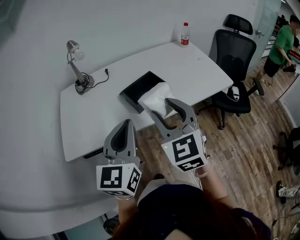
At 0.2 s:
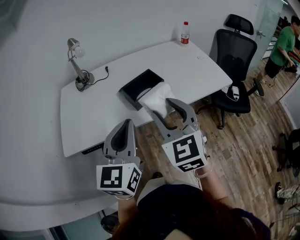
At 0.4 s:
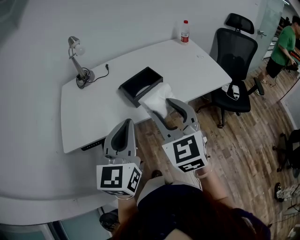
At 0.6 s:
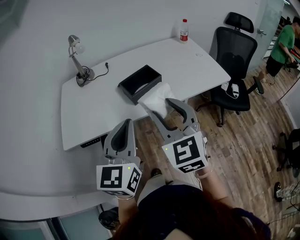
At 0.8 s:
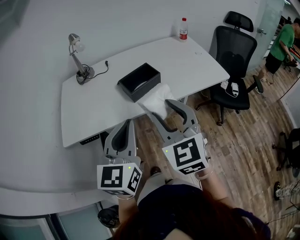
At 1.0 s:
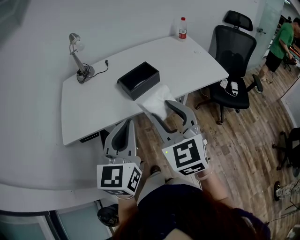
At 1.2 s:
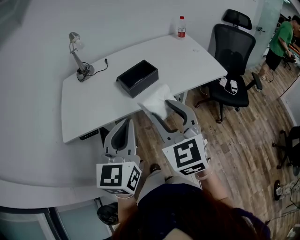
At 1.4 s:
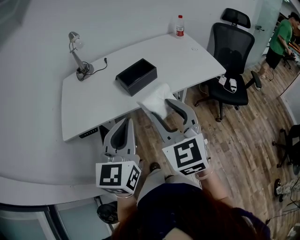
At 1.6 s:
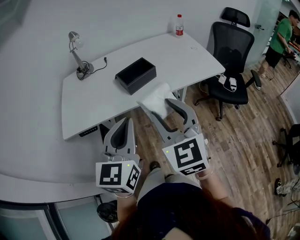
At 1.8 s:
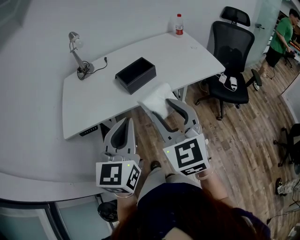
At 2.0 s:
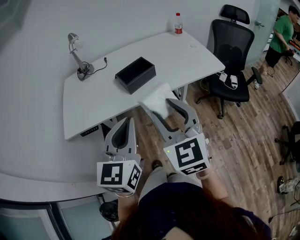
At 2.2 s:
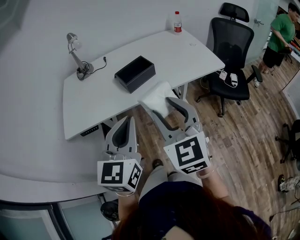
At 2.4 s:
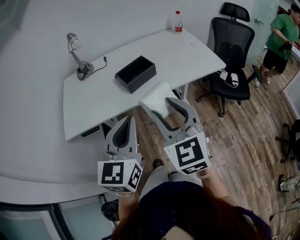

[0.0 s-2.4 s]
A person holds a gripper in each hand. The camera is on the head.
0.0 to 1.2 s: Both grippers move backward, approximately 10 cm.
1.2 to 2.4 s: The grippers stay close to where they were, moving slightly.

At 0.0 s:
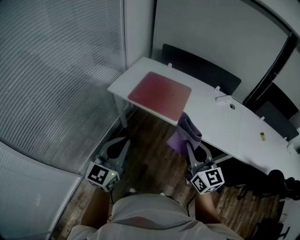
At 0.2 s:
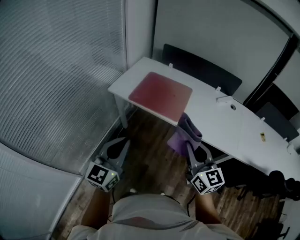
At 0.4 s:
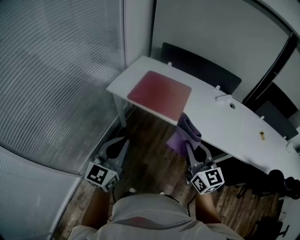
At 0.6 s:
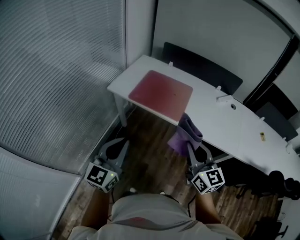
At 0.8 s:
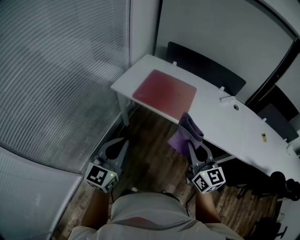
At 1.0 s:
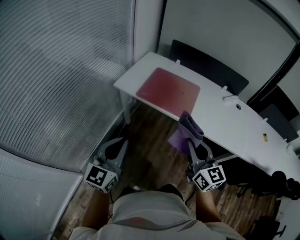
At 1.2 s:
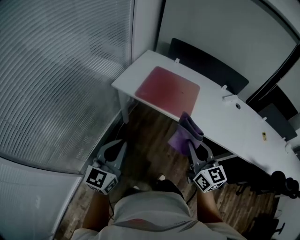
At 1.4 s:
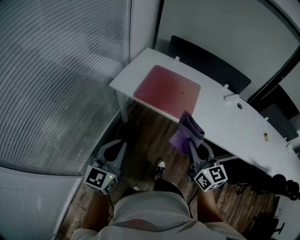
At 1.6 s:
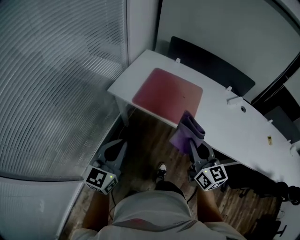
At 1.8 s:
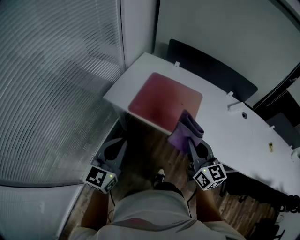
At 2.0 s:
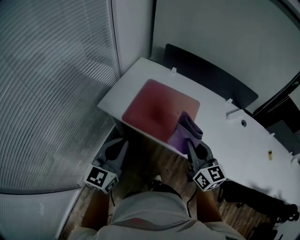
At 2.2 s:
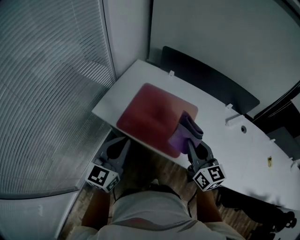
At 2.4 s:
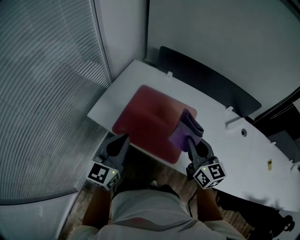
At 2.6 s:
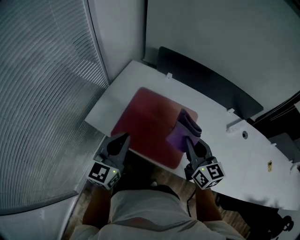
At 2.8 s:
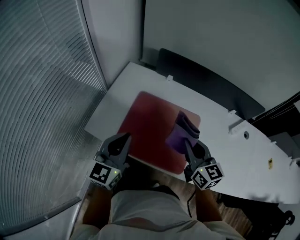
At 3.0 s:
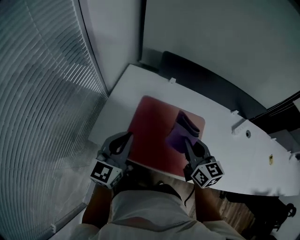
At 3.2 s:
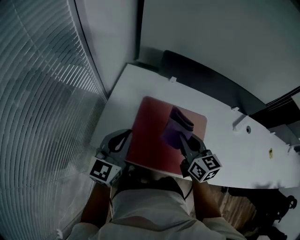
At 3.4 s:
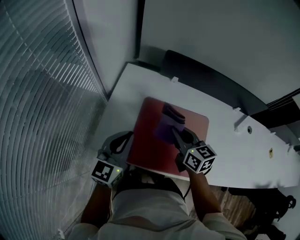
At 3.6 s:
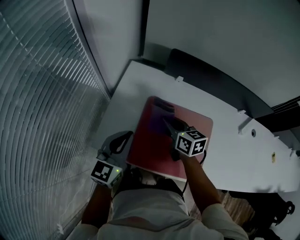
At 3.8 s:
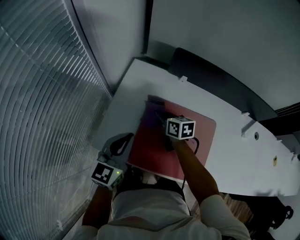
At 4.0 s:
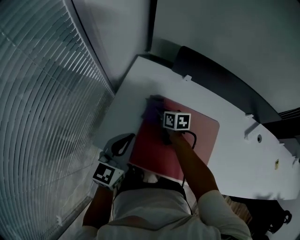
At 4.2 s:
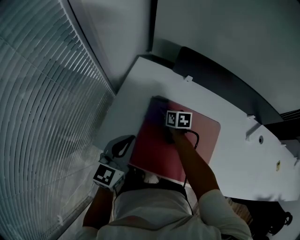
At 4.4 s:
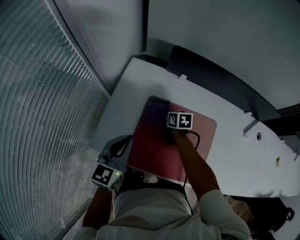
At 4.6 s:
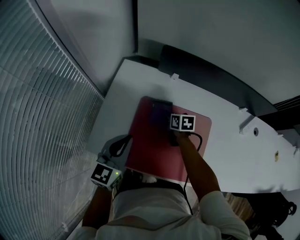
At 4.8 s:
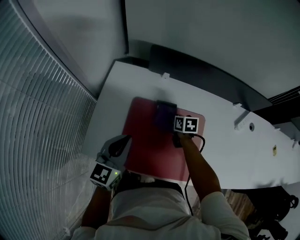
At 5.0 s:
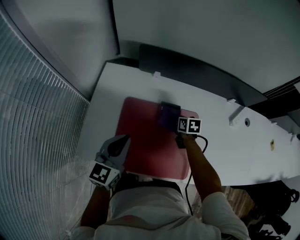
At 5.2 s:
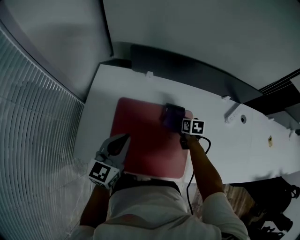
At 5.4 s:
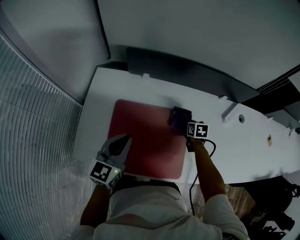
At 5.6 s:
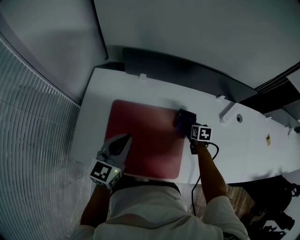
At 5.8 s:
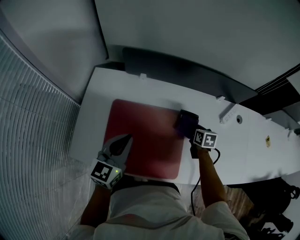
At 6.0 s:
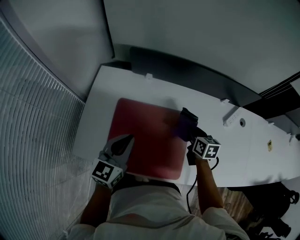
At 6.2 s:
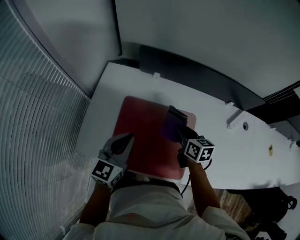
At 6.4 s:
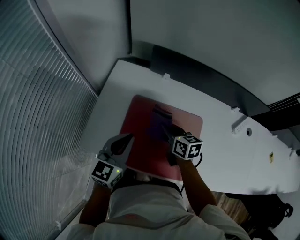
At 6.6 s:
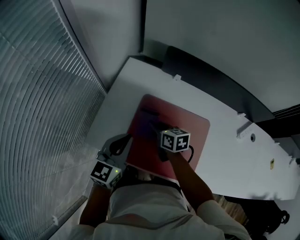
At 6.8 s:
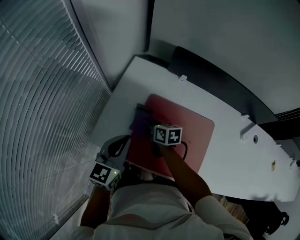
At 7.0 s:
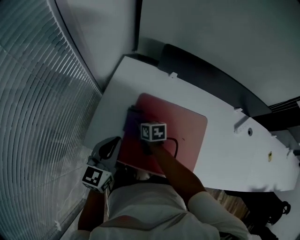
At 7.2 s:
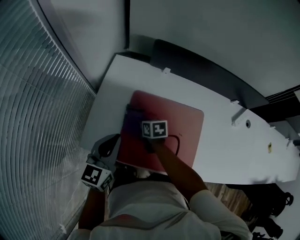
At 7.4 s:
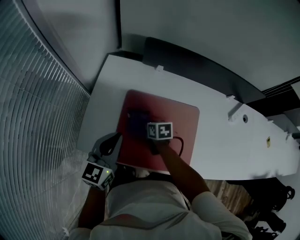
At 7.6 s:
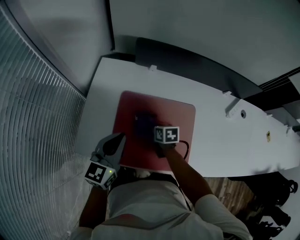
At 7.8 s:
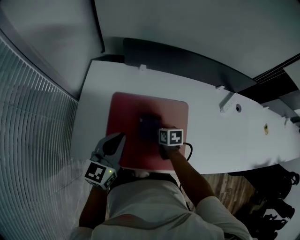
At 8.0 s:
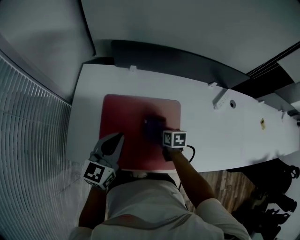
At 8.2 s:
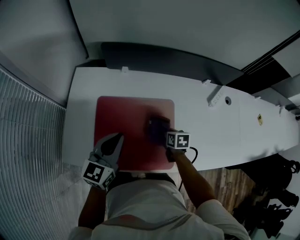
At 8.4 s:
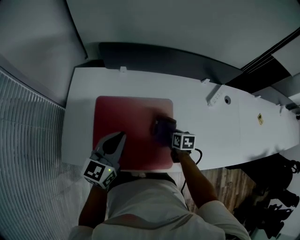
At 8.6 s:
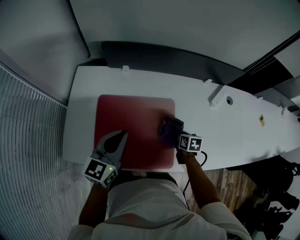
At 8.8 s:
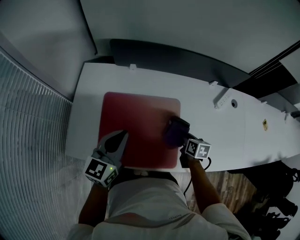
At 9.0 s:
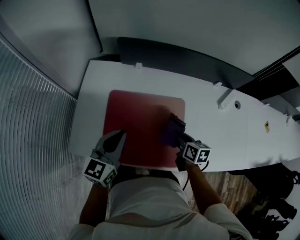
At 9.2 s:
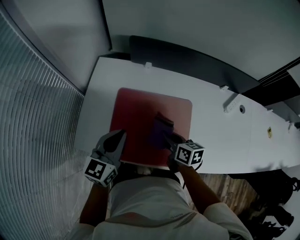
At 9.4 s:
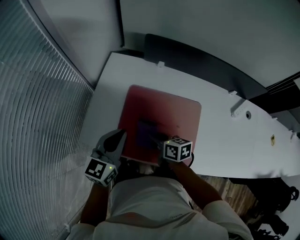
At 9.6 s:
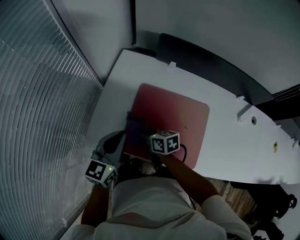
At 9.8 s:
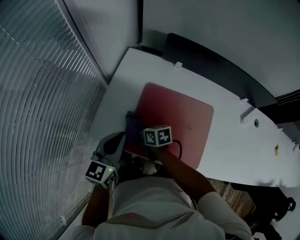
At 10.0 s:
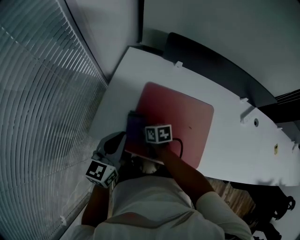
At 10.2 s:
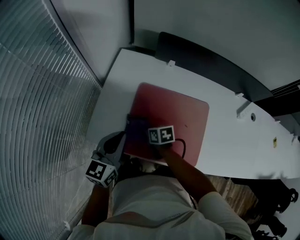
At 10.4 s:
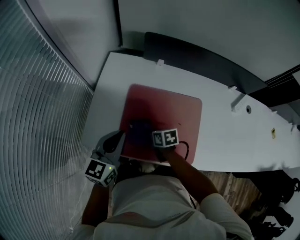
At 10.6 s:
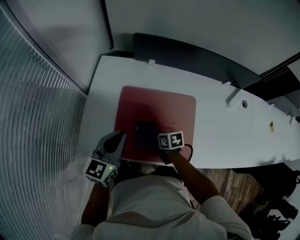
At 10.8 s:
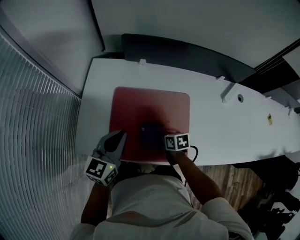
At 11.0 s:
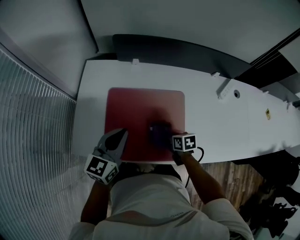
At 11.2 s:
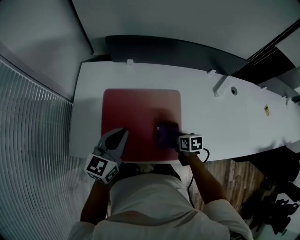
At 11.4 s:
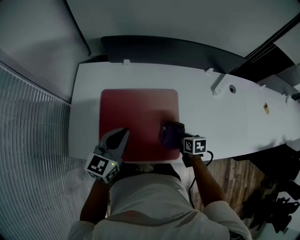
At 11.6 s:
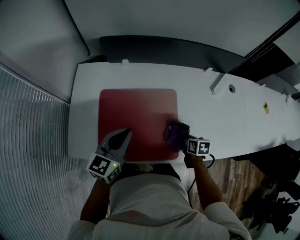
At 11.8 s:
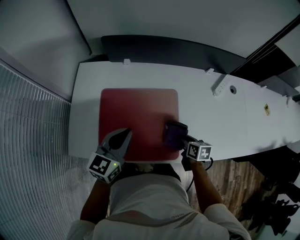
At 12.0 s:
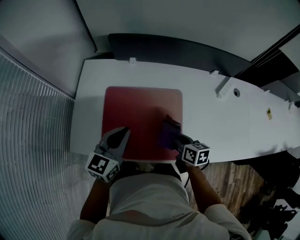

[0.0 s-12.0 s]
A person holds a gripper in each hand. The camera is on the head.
0.0 to 1.6 s: The left gripper shifts roughly 20 cm forward, to the left and downward. Meanwhile the right gripper heads forward and to the left, covering about 15 cm.
1.6 to 3.0 s: Both grippers are carried forward, some 40 cm.
3.0 to 4.4 s: The left gripper heads forward and downward, covering some 10 cm; the right gripper travels forward, downward and to the left by about 35 cm, and tilts its fingers some 30 degrees downward.
4.4 to 6.0 s: The left gripper shifts roughly 15 cm to the right. Meanwhile the right gripper is displaced to the right by approximately 30 cm, and changes its angle by roughly 20 degrees.
6.0 to 7.6 s: The right gripper shifts about 25 cm to the left and downward; the left gripper shifts approximately 10 cm to the left.
7.6 to 9.0 s: The left gripper heads to the right, covering some 5 cm. The right gripper travels to the right and upward by some 20 cm.
9.0 to 10.4 s: The right gripper changes place by approximately 25 cm, and turns by approximately 30 degrees.
10.4 to 12.0 s: The left gripper goes roughly 15 cm to the right, while the right gripper heads to the right, covering some 25 cm, and changes its angle by roughly 20 degrees.

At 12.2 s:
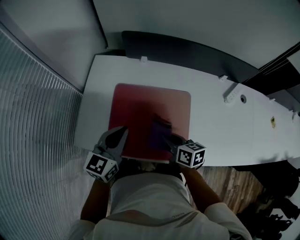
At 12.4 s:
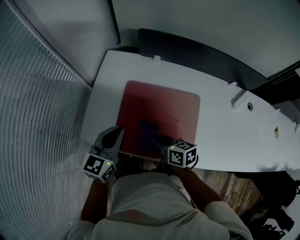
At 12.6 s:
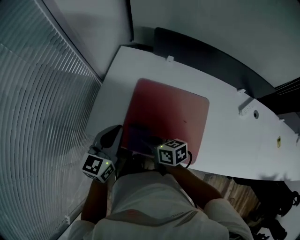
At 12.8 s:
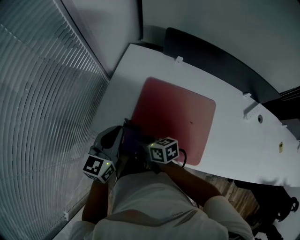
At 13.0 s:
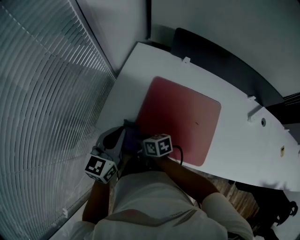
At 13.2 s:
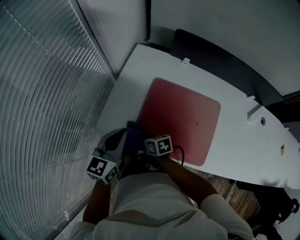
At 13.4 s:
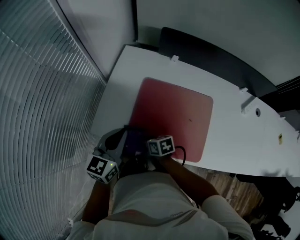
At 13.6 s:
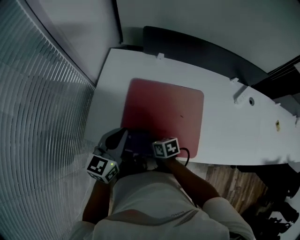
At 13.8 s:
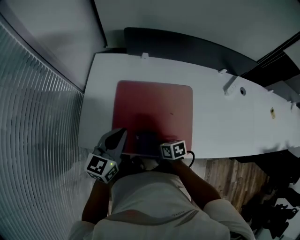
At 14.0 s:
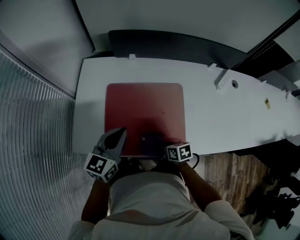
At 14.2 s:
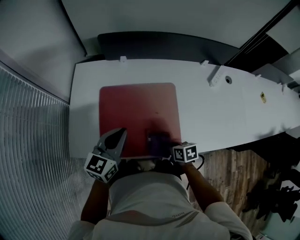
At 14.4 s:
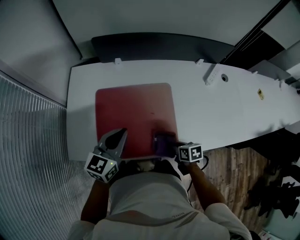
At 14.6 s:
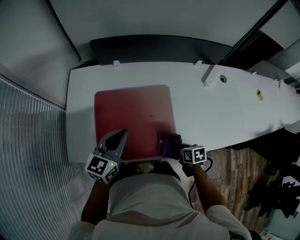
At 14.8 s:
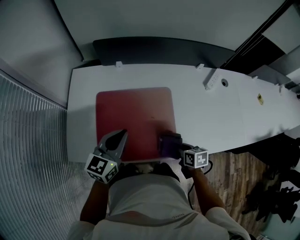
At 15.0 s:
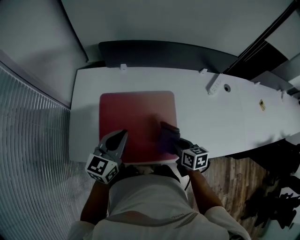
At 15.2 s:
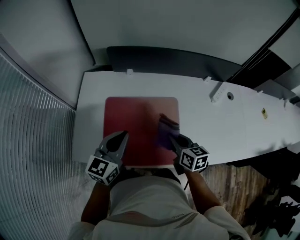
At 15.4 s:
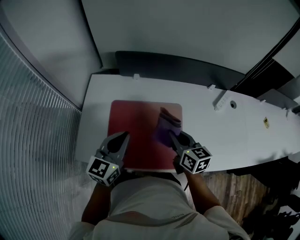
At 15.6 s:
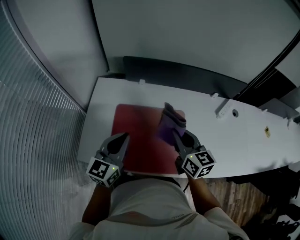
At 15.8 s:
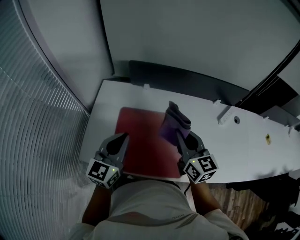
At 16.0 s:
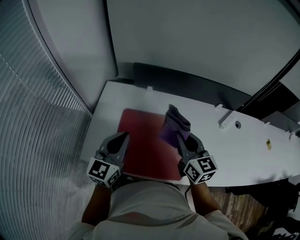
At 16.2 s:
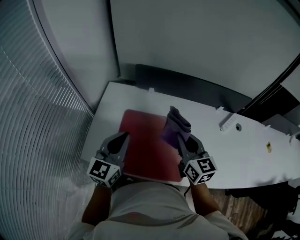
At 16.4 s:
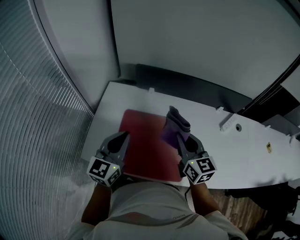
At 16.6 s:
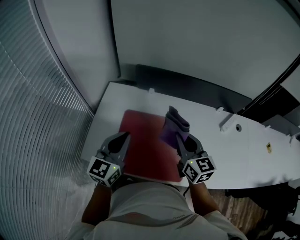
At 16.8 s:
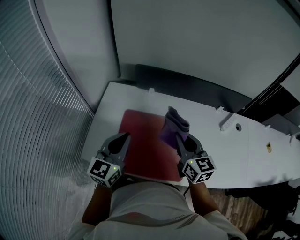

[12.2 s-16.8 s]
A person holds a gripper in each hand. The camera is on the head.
12.2 to 13.8 s: The right gripper goes roughly 10 cm downward, and turns by about 20 degrees.
13.8 to 15.2 s: The left gripper travels to the right by roughly 10 cm. Meanwhile the right gripper shifts approximately 20 cm to the right, upward and forward, and changes its angle by approximately 30 degrees.
15.2 to 16.8 s: The right gripper is displaced upward by approximately 15 cm, and turns by approximately 30 degrees, while the left gripper goes approximately 10 cm upward.

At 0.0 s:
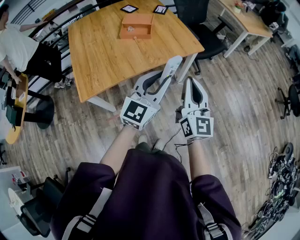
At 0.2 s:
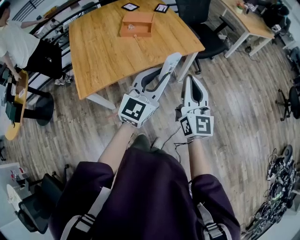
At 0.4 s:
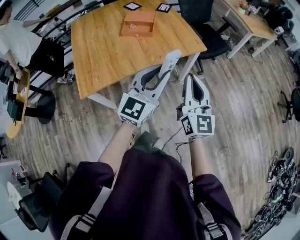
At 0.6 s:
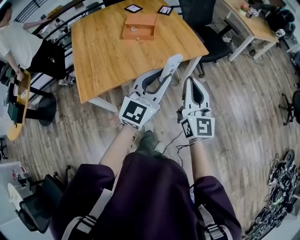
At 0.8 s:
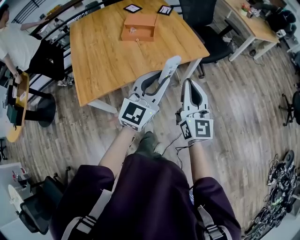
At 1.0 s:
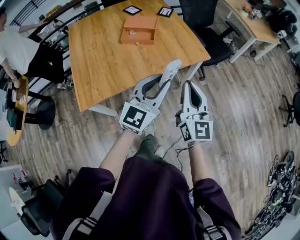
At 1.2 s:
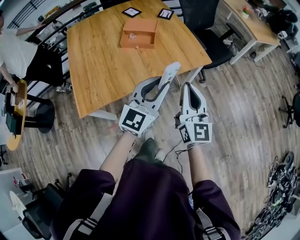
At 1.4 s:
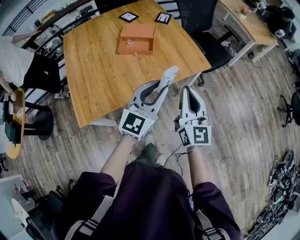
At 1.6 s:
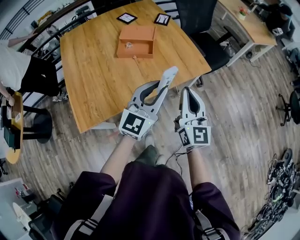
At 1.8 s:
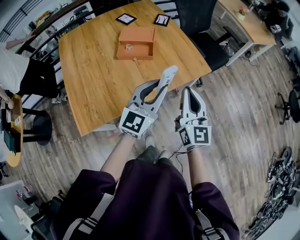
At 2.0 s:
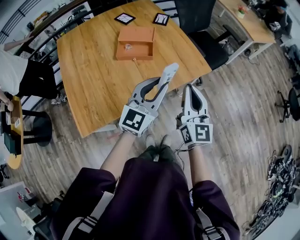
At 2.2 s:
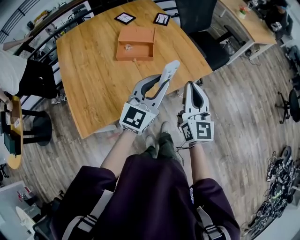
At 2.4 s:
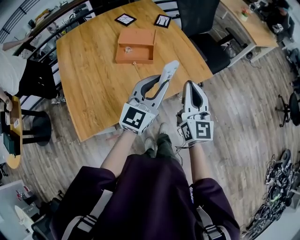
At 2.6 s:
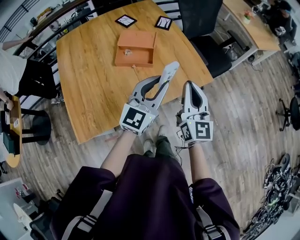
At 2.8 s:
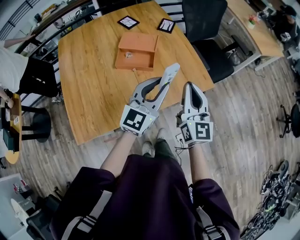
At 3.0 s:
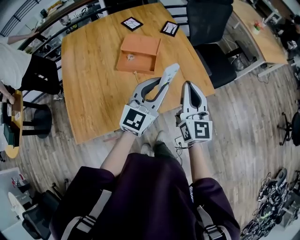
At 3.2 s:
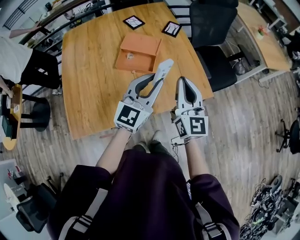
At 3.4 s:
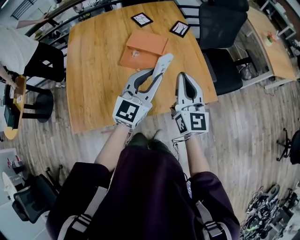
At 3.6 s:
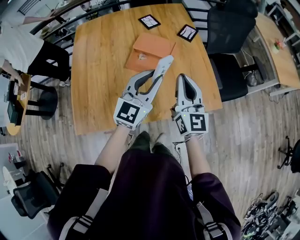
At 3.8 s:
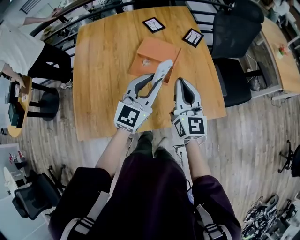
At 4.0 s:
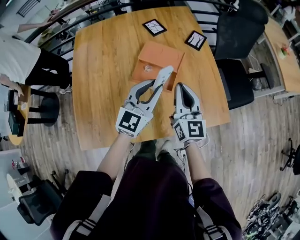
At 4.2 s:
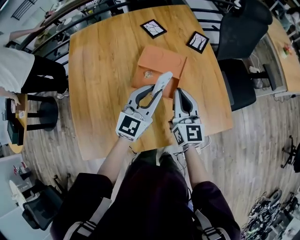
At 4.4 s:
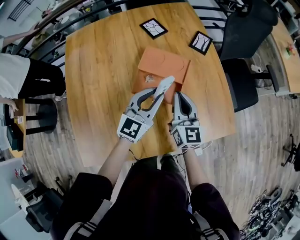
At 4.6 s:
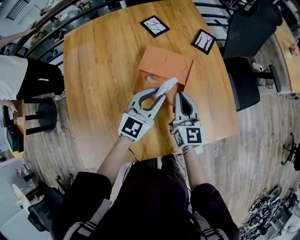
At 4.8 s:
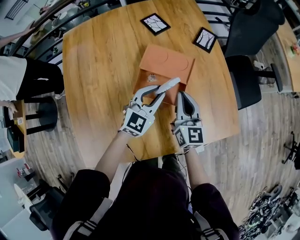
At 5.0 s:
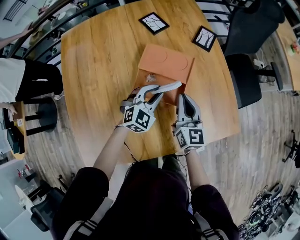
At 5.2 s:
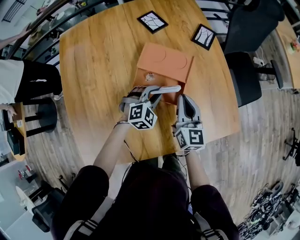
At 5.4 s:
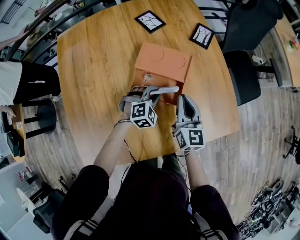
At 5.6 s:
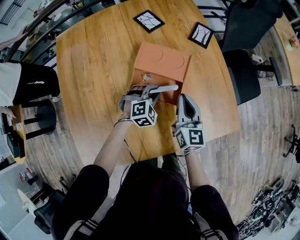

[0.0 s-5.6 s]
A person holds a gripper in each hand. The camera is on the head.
0.0 to 1.4 s: Both grippers travel together forward and to the left, approximately 15 cm.
1.4 to 2.8 s: Both grippers move forward, roughly 15 cm.
2.8 to 4.2 s: The right gripper travels forward, to the left and downward by approximately 25 cm. The left gripper shifts approximately 25 cm forward and to the left.
4.2 to 5.6 s: The left gripper goes approximately 25 cm downward, and tips its fingers downward by approximately 40 degrees; the right gripper goes some 10 cm downward and forward.
